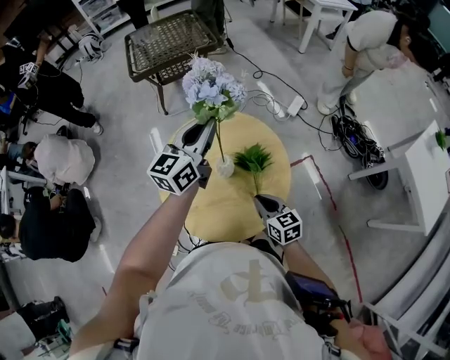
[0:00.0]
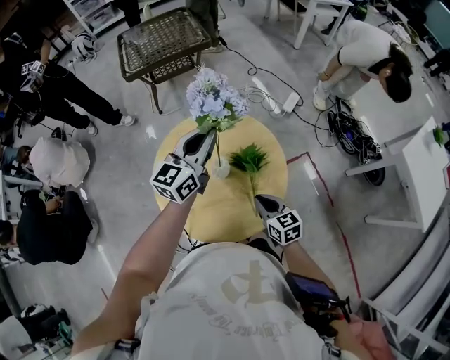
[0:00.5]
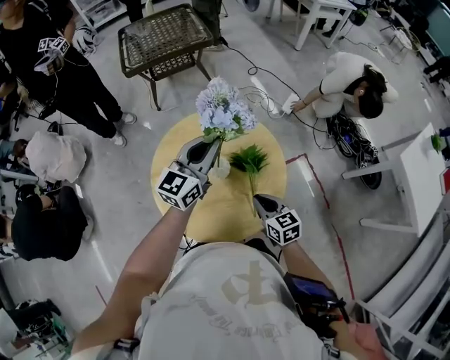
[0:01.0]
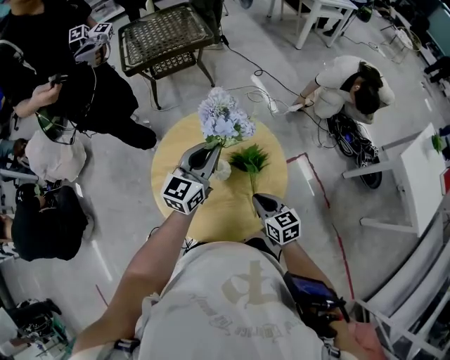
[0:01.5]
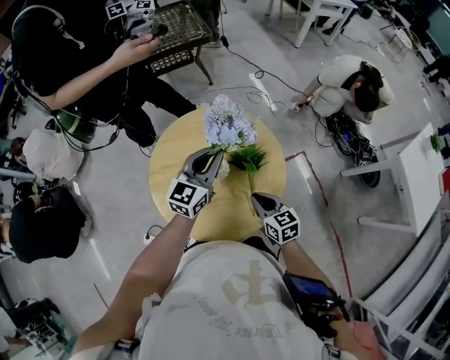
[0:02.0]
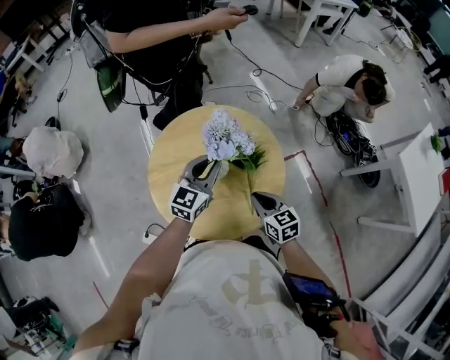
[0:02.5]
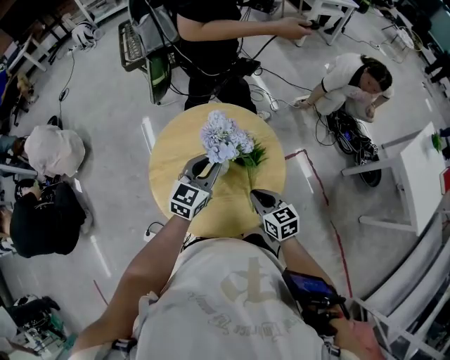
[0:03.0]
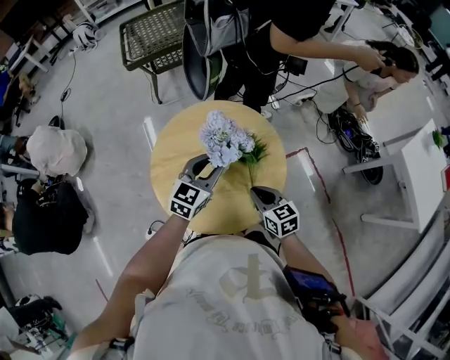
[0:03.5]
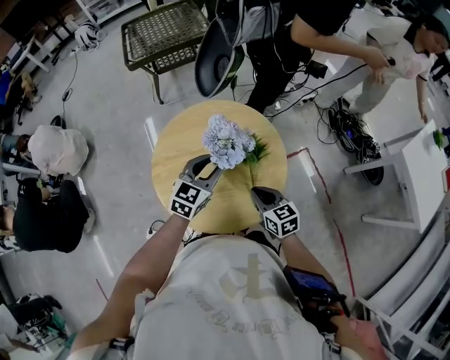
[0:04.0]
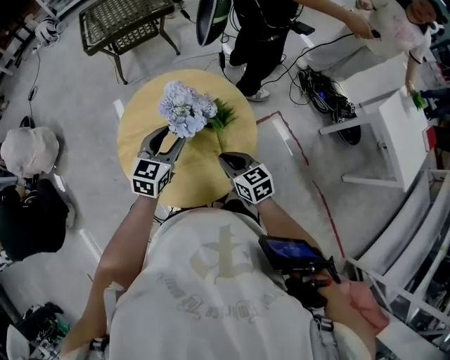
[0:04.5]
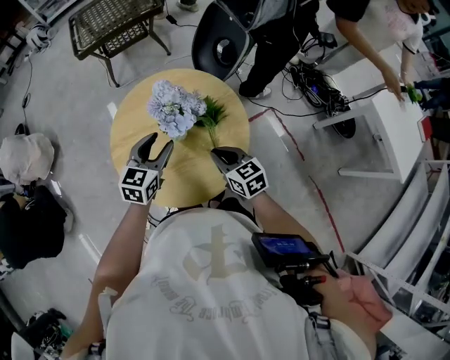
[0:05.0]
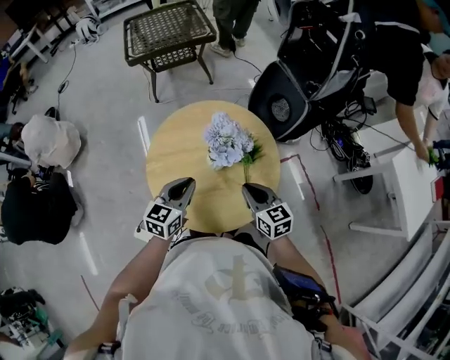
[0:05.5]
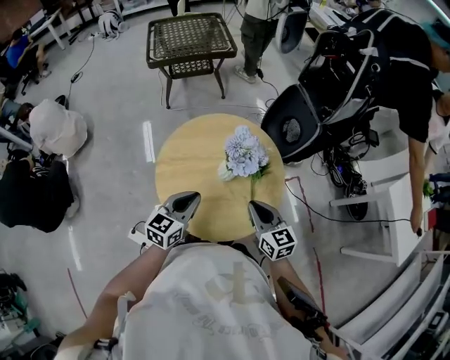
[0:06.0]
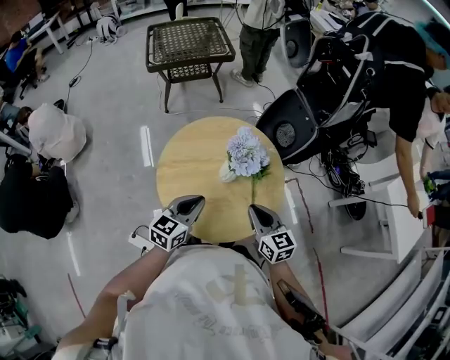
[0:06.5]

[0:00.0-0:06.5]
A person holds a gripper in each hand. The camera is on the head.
0:00.0 to 0:02.0: The left gripper is displaced downward by about 10 cm.
0:02.0 to 0:04.5: The left gripper is displaced downward and backward by roughly 10 cm, and opens its fingers.
0:04.5 to 0:06.5: The left gripper shifts roughly 15 cm backward and to the left, and closes its fingers. The right gripper shifts roughly 10 cm upward.

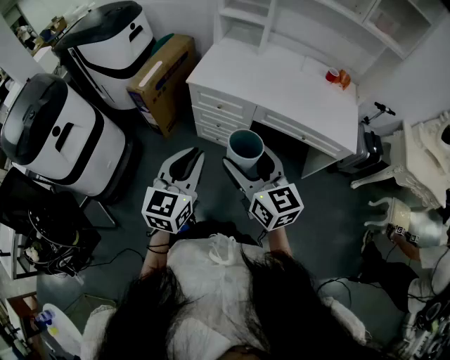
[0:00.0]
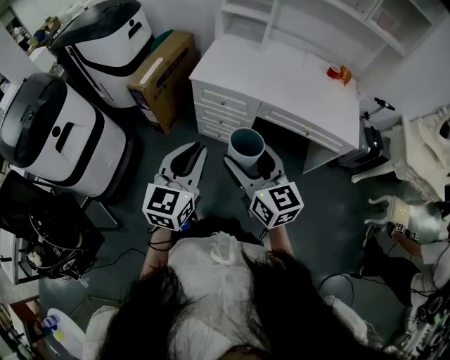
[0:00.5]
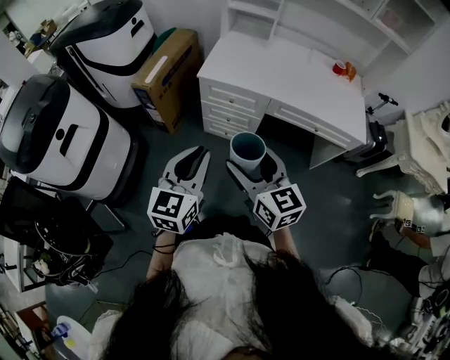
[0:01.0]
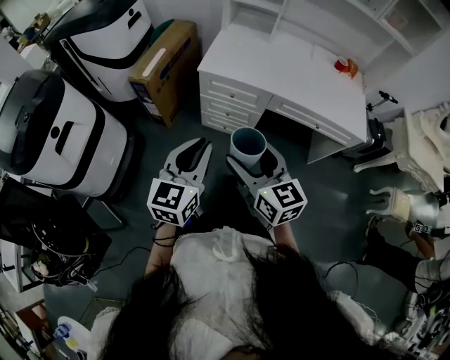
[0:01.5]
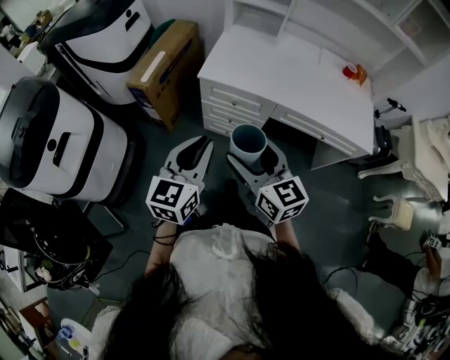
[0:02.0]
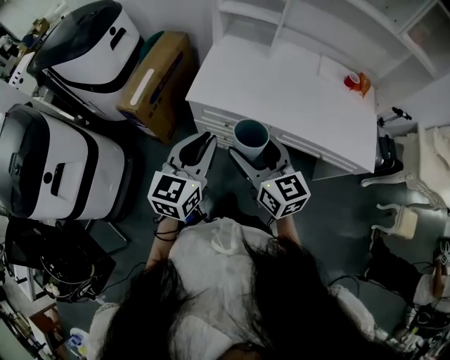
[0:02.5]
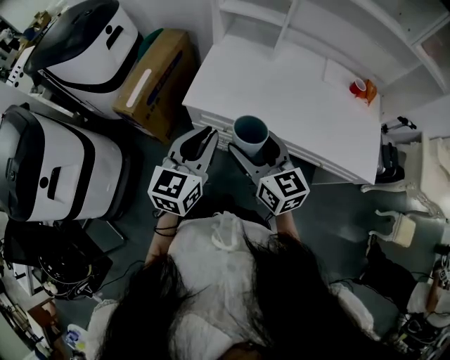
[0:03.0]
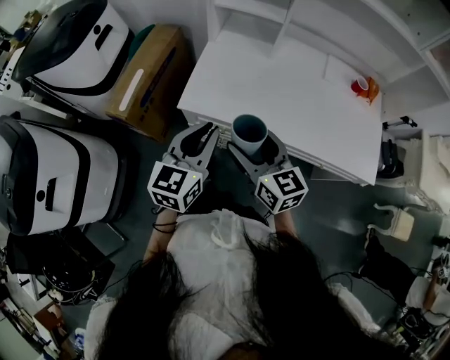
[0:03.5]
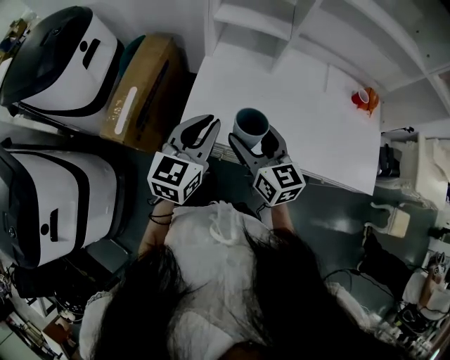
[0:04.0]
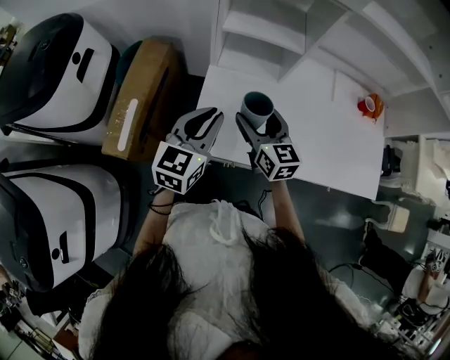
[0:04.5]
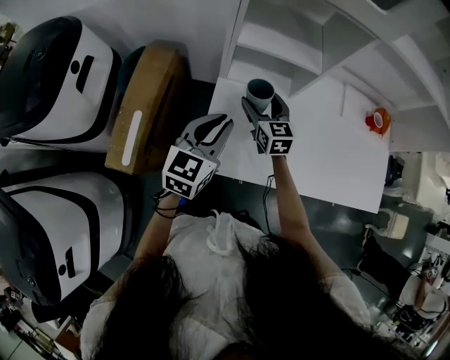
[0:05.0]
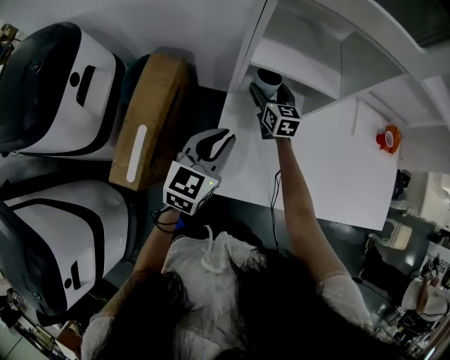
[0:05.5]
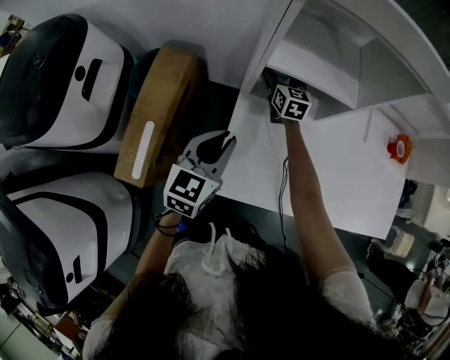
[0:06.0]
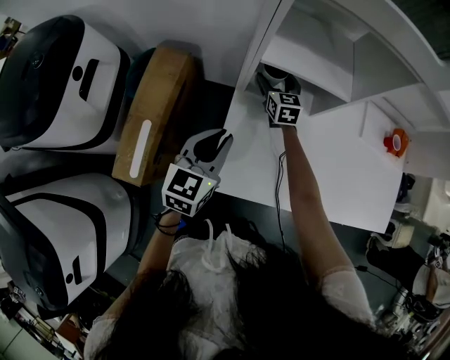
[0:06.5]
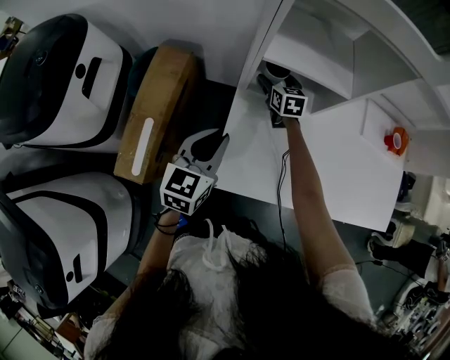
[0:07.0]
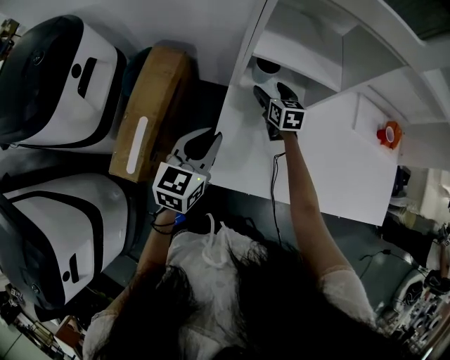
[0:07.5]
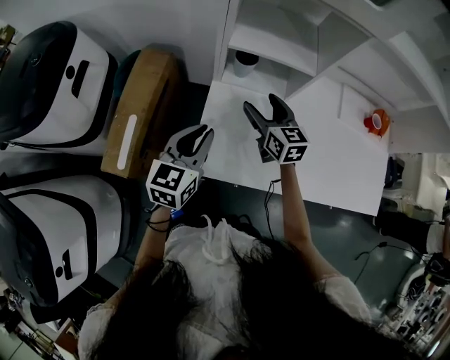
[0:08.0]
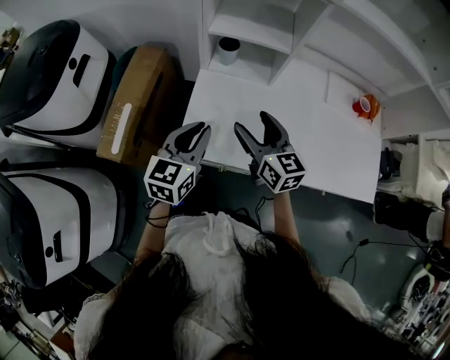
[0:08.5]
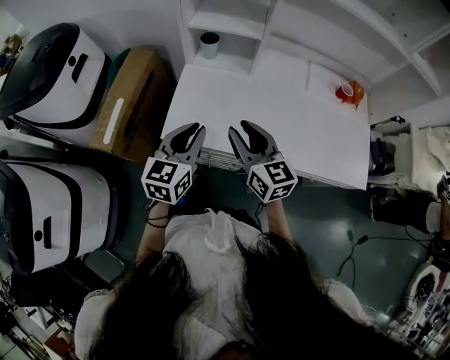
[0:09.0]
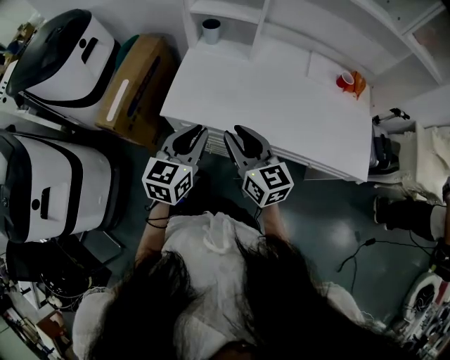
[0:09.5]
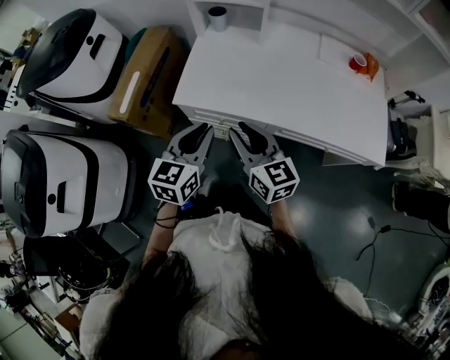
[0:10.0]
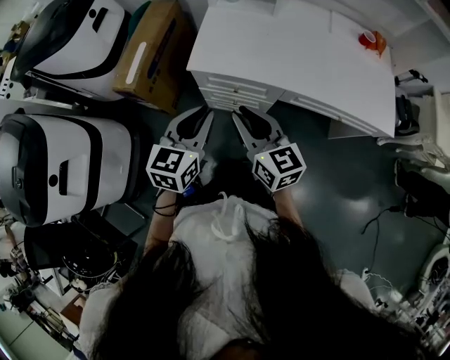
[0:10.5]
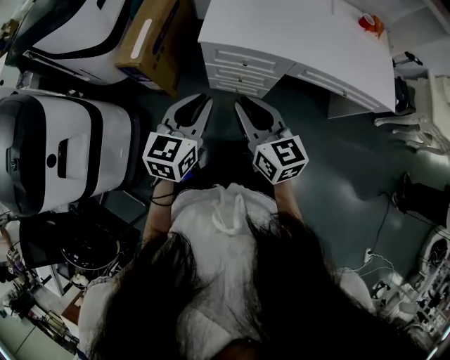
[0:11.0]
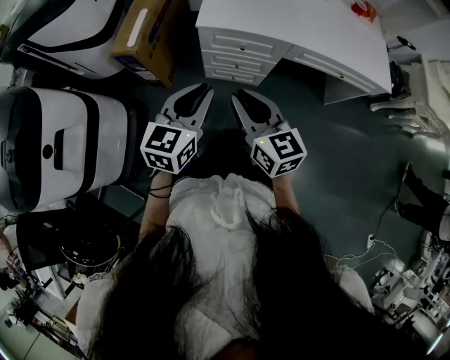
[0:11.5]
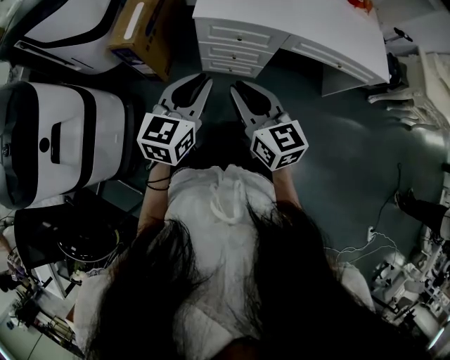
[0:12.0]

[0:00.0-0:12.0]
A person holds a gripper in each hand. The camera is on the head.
0:00.0 to 0:02.0: The grippers both shift forward and to the left by about 15 cm.
0:02.0 to 0:04.0: The two grippers go some 35 cm forward.
0:04.0 to 0:06.0: The right gripper heads forward, covering some 40 cm. The left gripper is displaced forward, to the left and downward by roughly 25 cm.
0:06.0 to 0:08.0: The right gripper moves backward and upward, approximately 20 cm. The left gripper is displaced backward by some 5 cm.
0:08.0 to 0:10.0: The left gripper heads backward and to the right, covering approximately 30 cm. The right gripper heads backward, covering some 35 cm, and closes its fingers.
0:10.0 to 0:12.0: Both grippers move backward and to the left, about 25 cm.

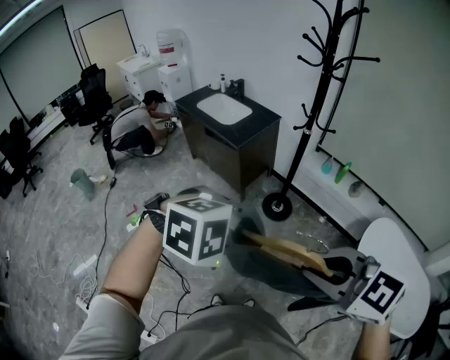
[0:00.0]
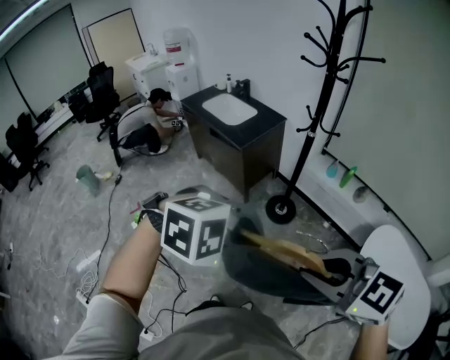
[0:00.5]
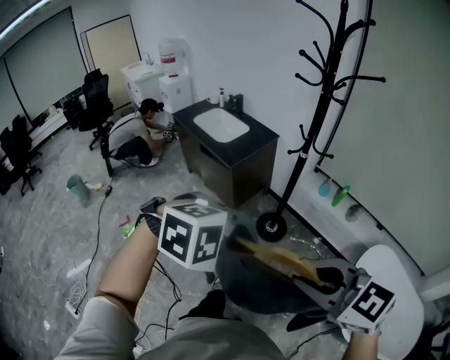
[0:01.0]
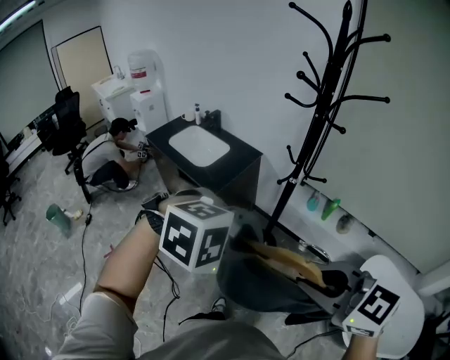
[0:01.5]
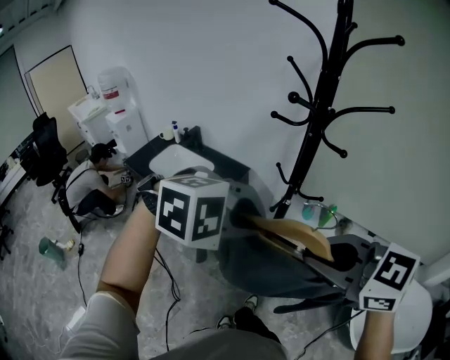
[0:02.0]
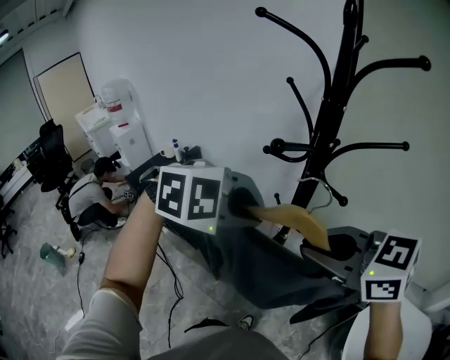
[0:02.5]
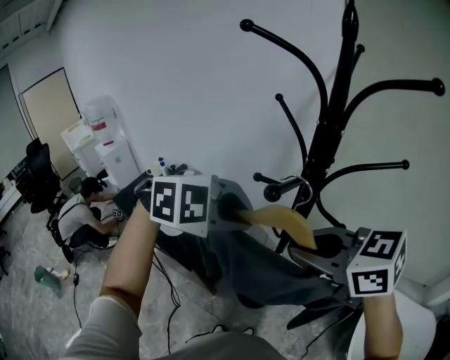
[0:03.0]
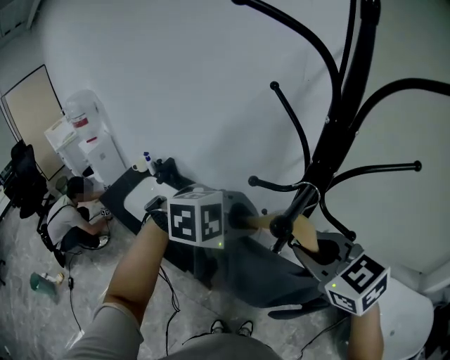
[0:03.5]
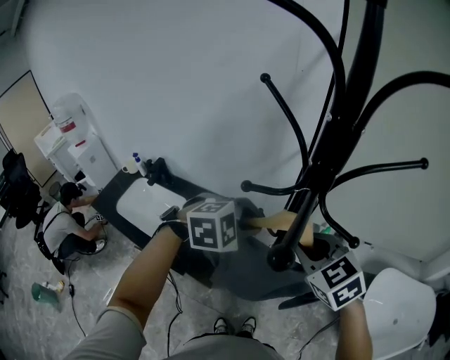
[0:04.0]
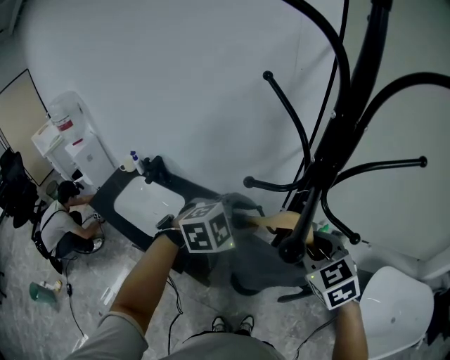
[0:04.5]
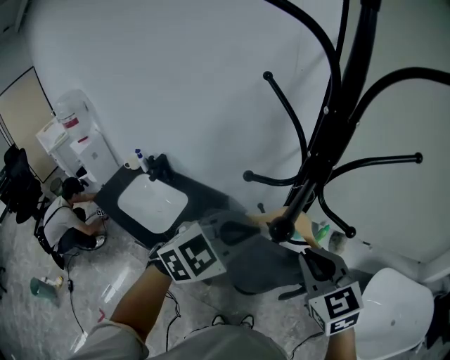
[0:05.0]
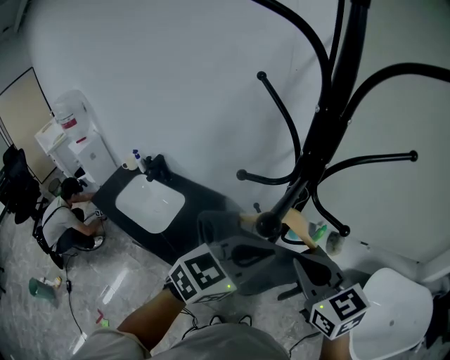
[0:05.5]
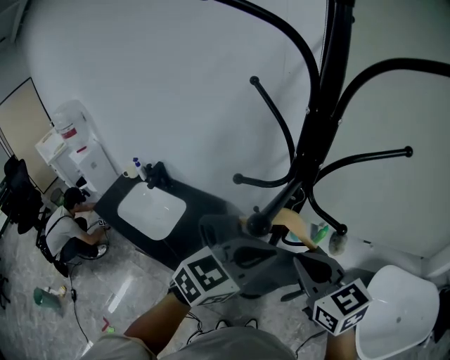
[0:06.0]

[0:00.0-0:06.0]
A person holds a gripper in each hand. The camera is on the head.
0:00.0 to 0:02.0: The pair of grippers is taken roughly 40 cm.
0:02.0 to 0:04.0: The right gripper shifts by some 35 cm, and swivels approximately 30 degrees, while the left gripper changes place by about 35 cm.
0:04.0 to 0:06.0: The left gripper heads backward, to the right and upward, covering some 15 cm, angles its fingers upward, by about 30 degrees, and opens, then closes again, while the right gripper shifts some 5 cm backward, and swivels roughly 20 degrees.

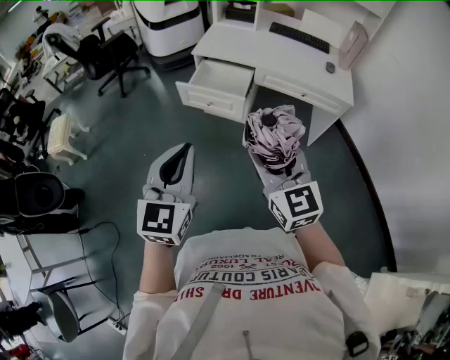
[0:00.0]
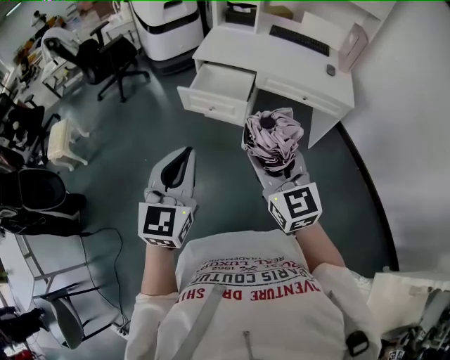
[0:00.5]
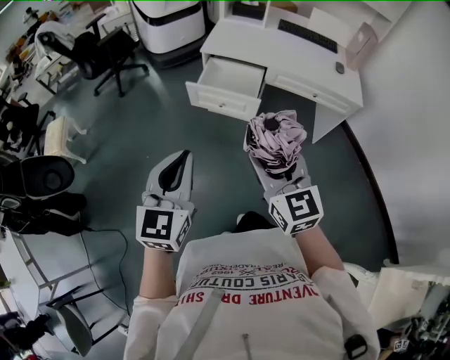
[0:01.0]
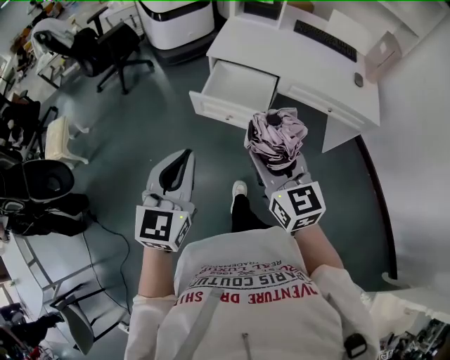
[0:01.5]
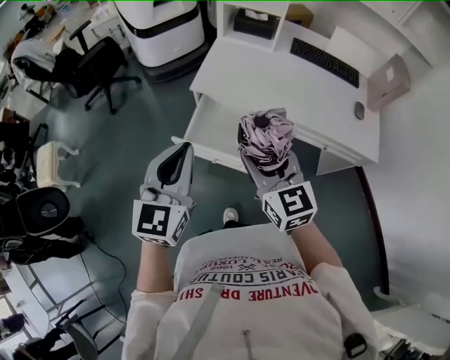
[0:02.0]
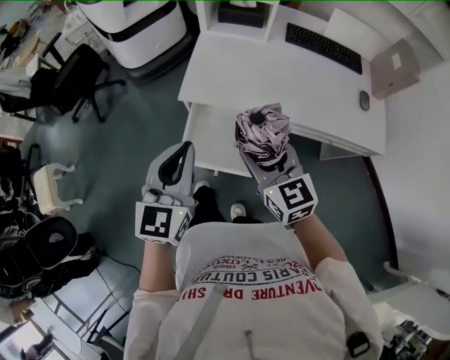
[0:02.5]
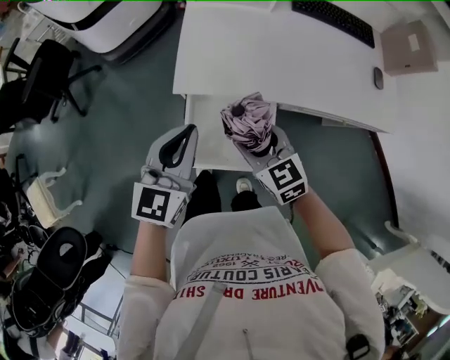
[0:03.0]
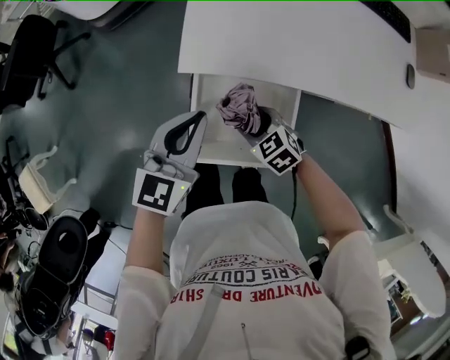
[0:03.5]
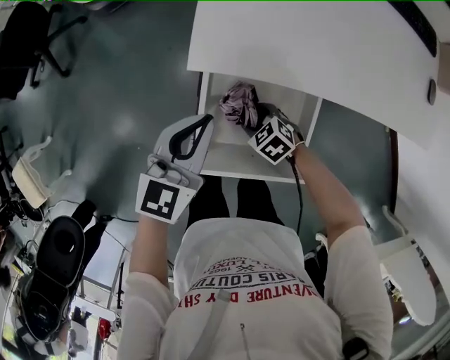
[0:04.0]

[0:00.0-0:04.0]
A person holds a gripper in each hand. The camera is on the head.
0:00.0 to 0:02.0: Both grippers move forward, about 40 cm.
0:02.0 to 0:04.0: The left gripper is displaced downward and forward by about 40 cm, and rotates about 30 degrees, while the right gripper shifts some 50 cm downward, and tilts its fingers some 50 degrees downward.
